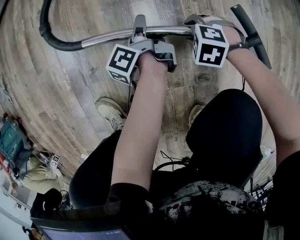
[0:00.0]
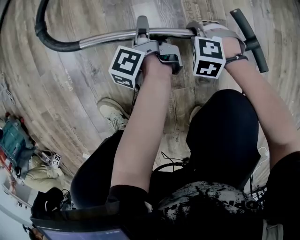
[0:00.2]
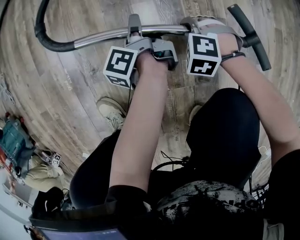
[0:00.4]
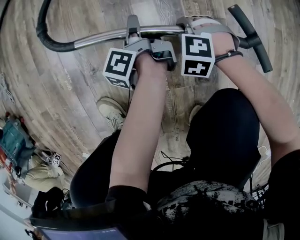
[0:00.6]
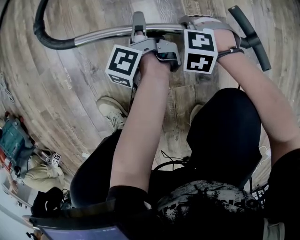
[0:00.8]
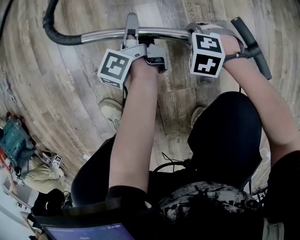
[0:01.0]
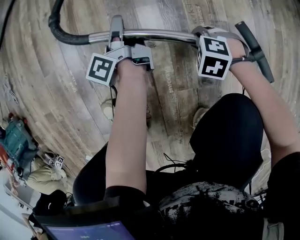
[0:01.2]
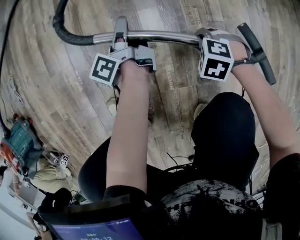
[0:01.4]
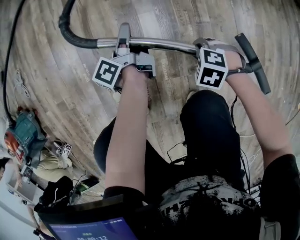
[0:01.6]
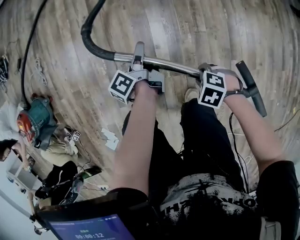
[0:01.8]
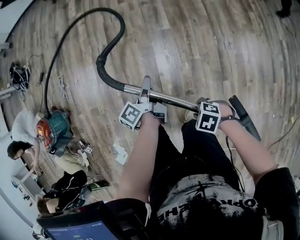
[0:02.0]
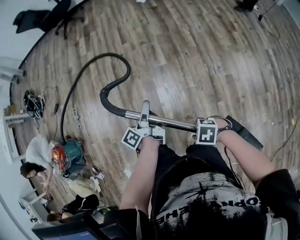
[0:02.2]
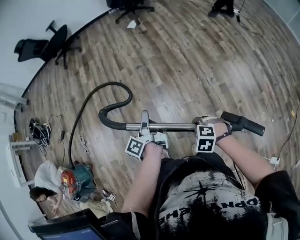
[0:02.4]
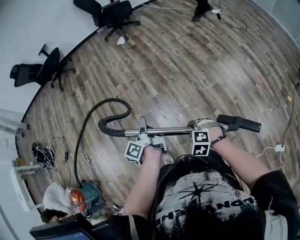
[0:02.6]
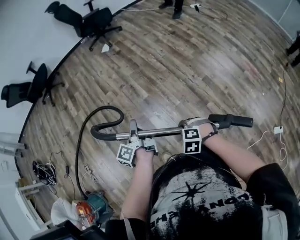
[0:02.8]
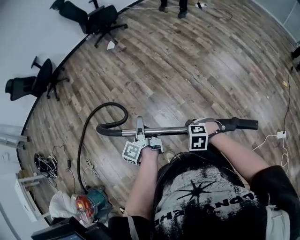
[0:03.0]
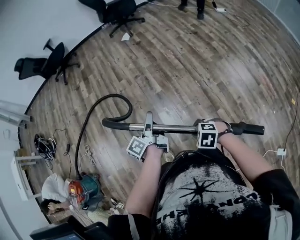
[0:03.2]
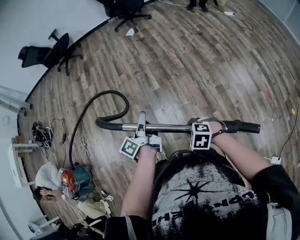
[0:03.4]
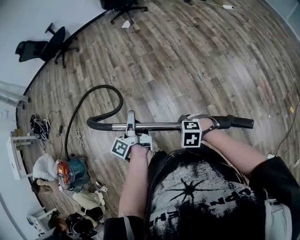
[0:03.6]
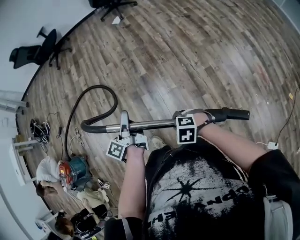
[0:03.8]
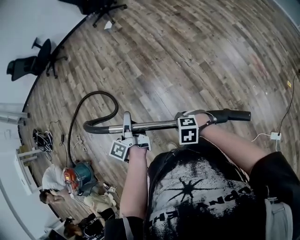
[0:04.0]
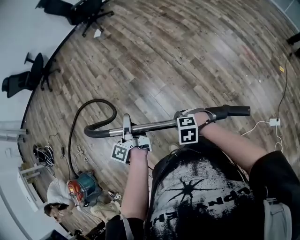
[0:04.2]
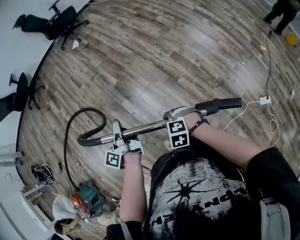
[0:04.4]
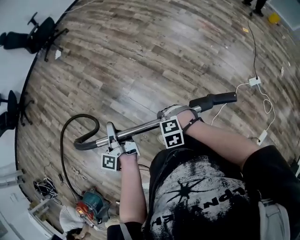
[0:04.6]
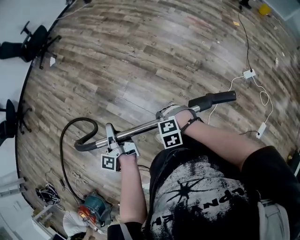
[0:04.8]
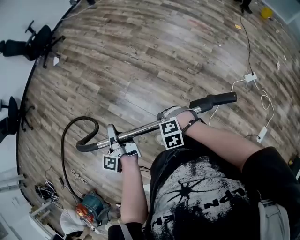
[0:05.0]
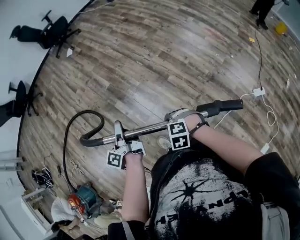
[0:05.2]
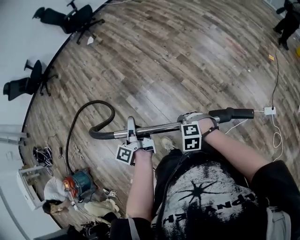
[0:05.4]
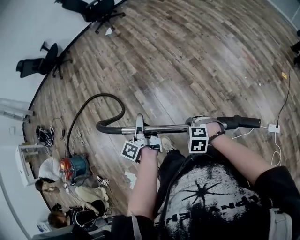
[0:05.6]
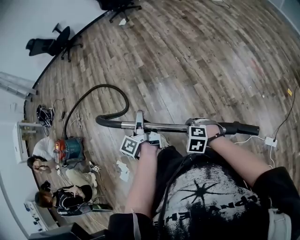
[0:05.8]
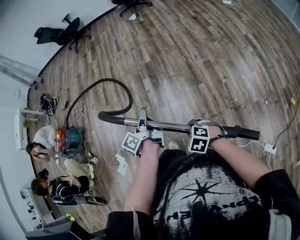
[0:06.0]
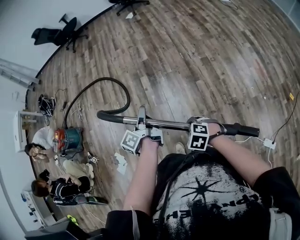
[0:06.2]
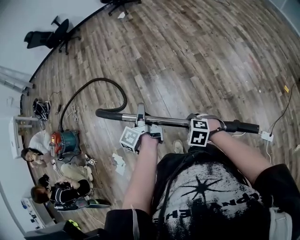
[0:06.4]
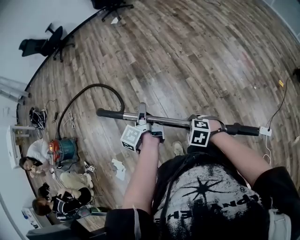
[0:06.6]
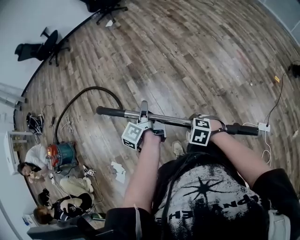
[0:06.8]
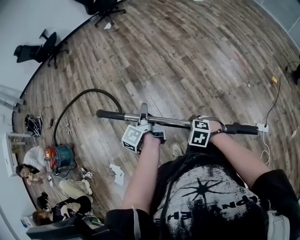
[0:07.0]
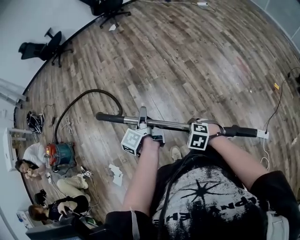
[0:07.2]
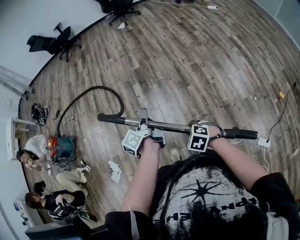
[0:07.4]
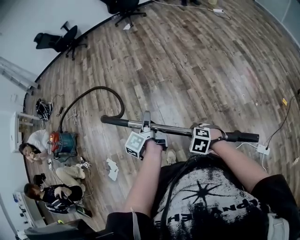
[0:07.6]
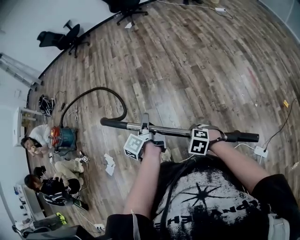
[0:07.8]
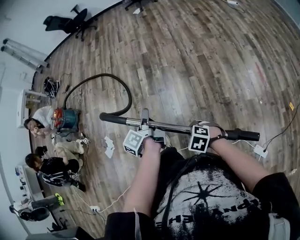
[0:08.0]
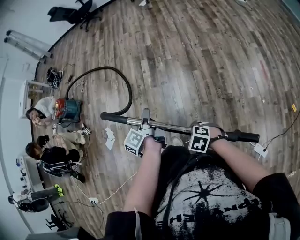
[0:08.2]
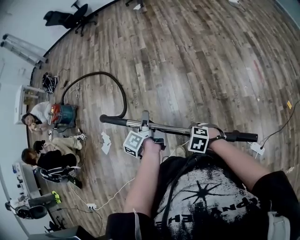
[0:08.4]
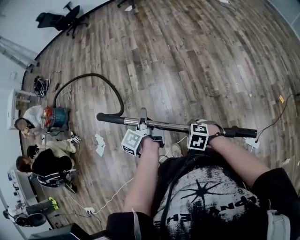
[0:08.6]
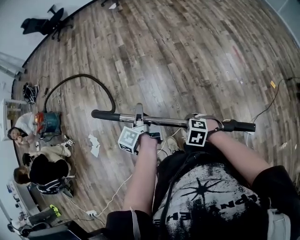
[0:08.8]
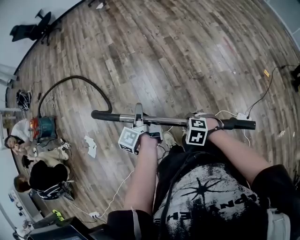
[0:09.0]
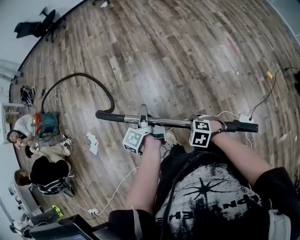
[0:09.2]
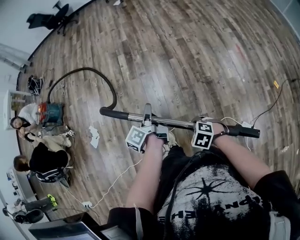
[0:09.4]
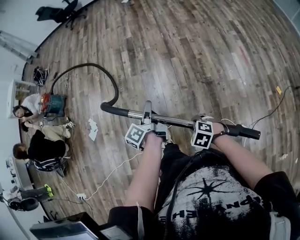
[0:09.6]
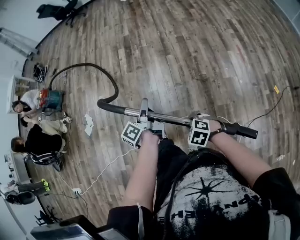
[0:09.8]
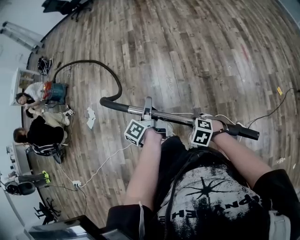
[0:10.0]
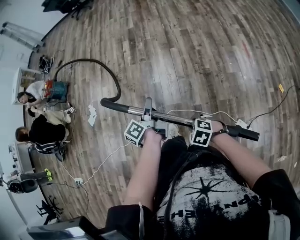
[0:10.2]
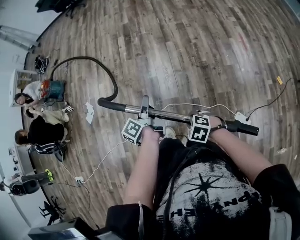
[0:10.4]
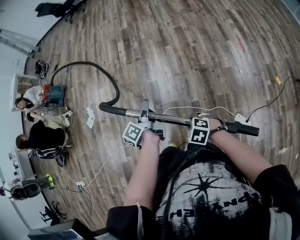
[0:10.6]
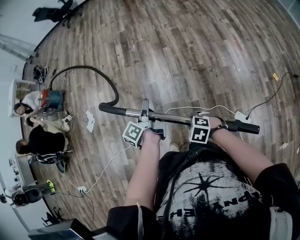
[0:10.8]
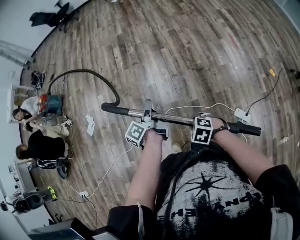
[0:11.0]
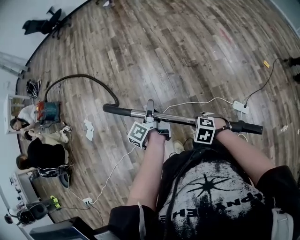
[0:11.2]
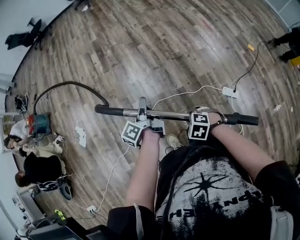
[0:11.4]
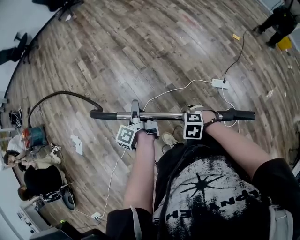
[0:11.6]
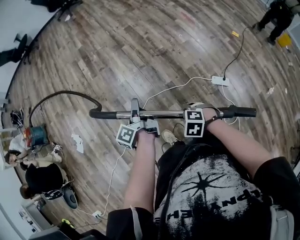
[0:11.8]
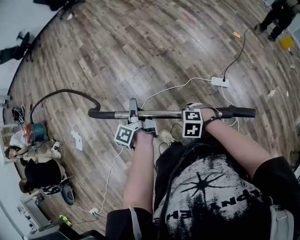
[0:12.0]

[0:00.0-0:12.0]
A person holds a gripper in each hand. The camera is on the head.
0.0 to 1.6 s: The two grippers go some 20 cm upward. The right gripper closes up.
1.6 to 3.0 s: Both grippers travel together upward, about 50 cm. The left gripper rotates some 20 degrees; the right gripper turns by roughly 30 degrees.
3.0 to 4.4 s: Both grippers move backward, about 20 cm.
4.4 to 6.0 s: The left gripper ends up some 30 cm from where it was. The right gripper moves roughly 30 cm.
6.0 to 7.6 s: The grippers both shift backward and to the right by roughly 10 cm.
7.6 to 9.0 s: The left gripper moves approximately 20 cm. The right gripper moves roughly 20 cm.
9.0 to 10.4 s: The right gripper ends up roughly 25 cm from where it was; the left gripper changes place by some 25 cm.
10.4 to 12.0 s: The left gripper changes place by approximately 15 cm; the right gripper moves about 15 cm.

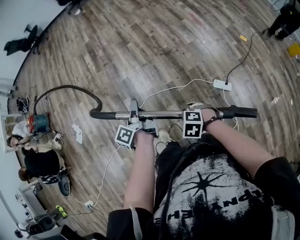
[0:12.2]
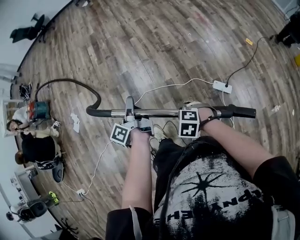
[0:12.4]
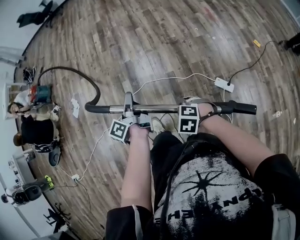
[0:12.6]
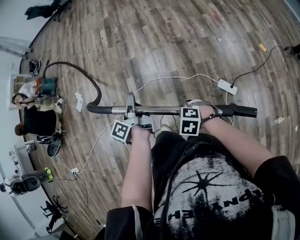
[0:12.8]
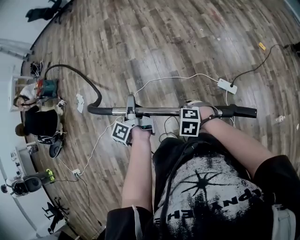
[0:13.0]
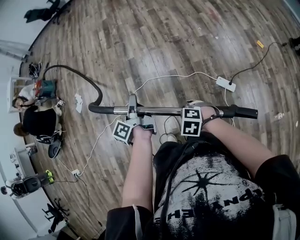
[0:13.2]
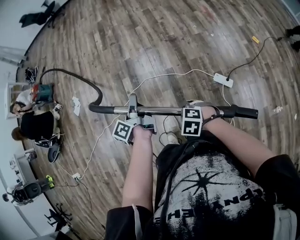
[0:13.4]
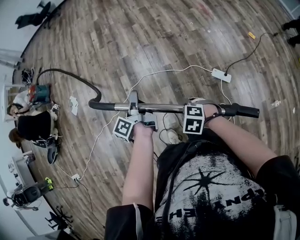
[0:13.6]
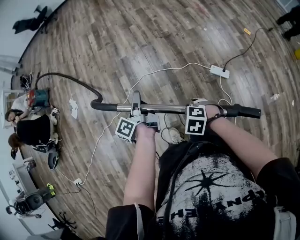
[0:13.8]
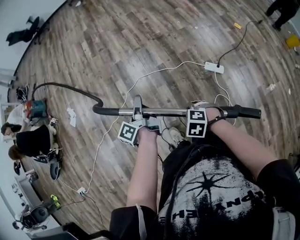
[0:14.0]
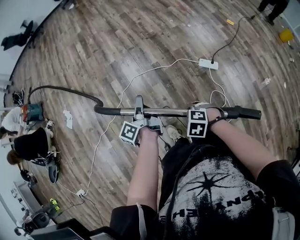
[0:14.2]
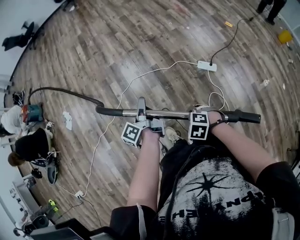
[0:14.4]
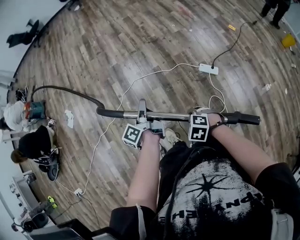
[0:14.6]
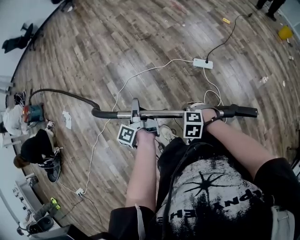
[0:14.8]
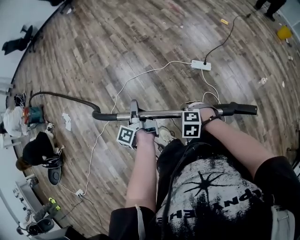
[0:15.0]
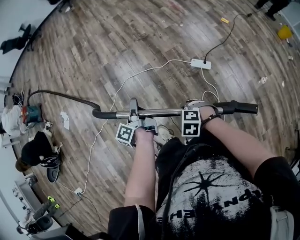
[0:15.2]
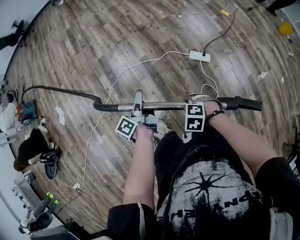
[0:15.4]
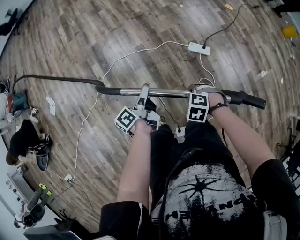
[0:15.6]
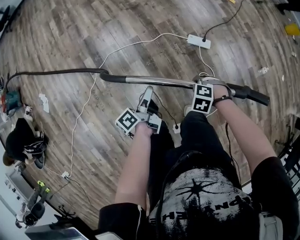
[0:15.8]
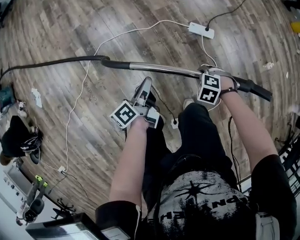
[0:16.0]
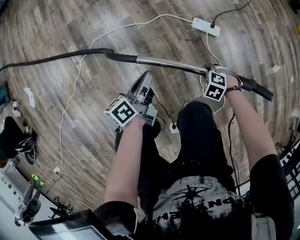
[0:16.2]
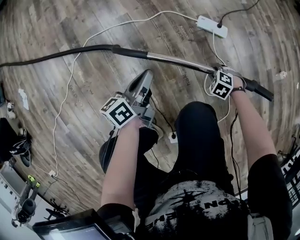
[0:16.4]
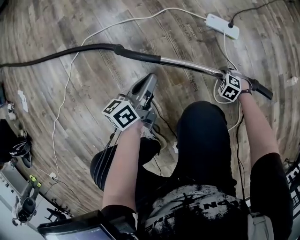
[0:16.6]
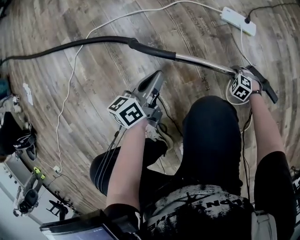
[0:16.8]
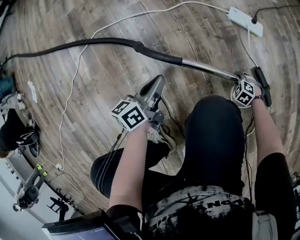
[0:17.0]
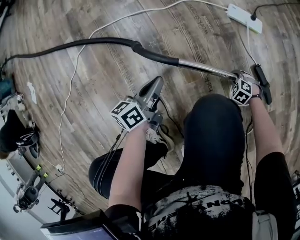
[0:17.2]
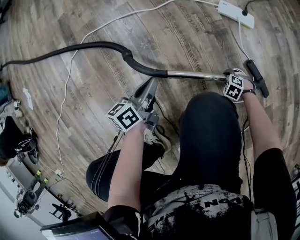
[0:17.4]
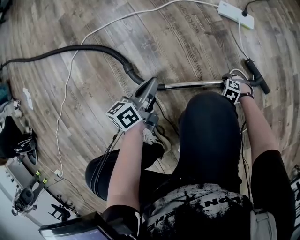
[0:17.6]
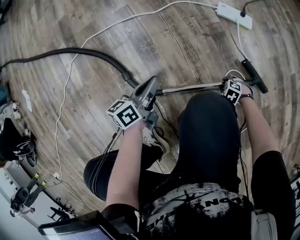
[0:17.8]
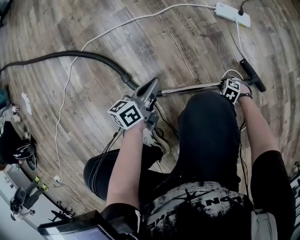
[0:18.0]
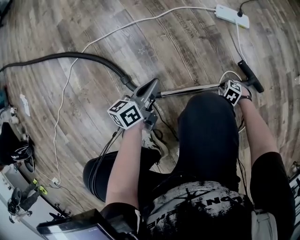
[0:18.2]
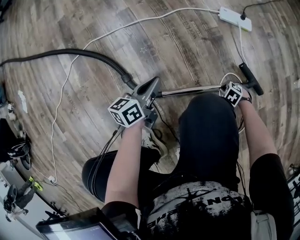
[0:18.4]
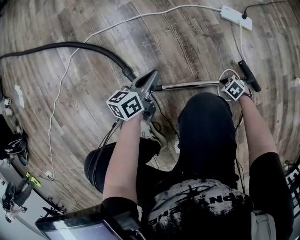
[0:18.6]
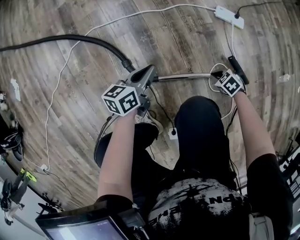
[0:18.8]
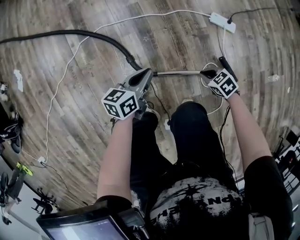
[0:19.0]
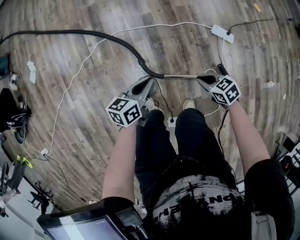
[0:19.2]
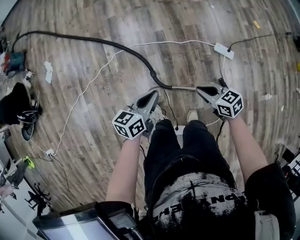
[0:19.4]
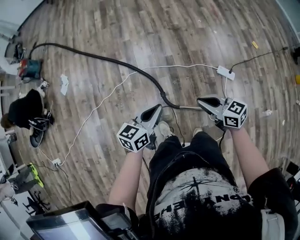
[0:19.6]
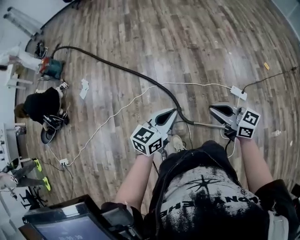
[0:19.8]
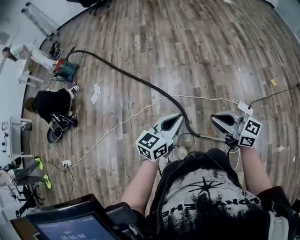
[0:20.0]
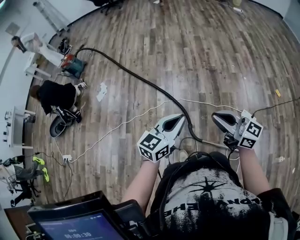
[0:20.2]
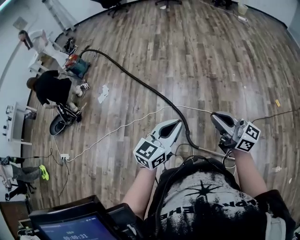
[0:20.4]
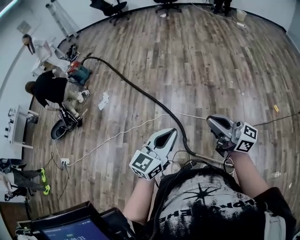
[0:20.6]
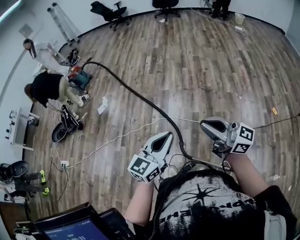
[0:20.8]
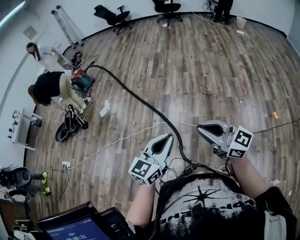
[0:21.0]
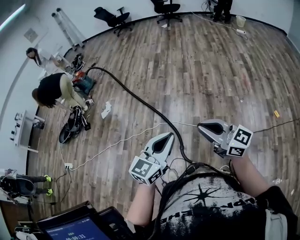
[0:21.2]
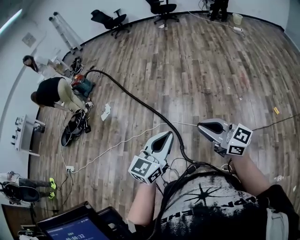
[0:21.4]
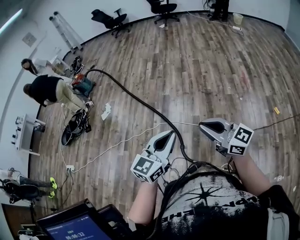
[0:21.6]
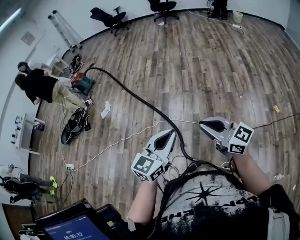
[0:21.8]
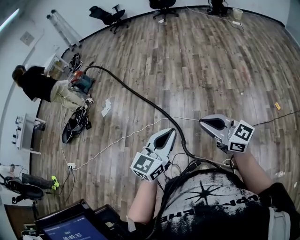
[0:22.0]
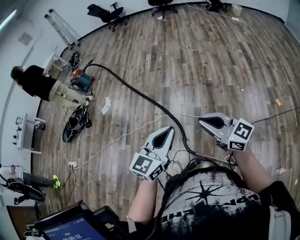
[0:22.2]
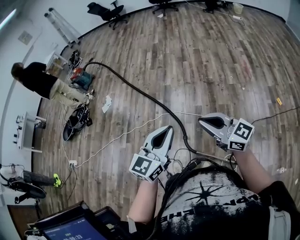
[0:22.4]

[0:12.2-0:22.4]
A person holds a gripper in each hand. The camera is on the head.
12.2 to 13.6 s: The right gripper changes place by approximately 15 cm; the left gripper ends up roughly 15 cm from where it was.
13.6 to 15.2 s: The left gripper shifts by approximately 15 cm. The right gripper moves some 15 cm.
15.2 to 16.6 s: Both grippers travel together downward, roughly 50 cm. The left gripper rotates roughly 50 degrees, and opens and closes again.
16.6 to 18.0 s: Both grippers move downward, roughly 10 cm. The right gripper opens.
18.0 to 19.4 s: Both grippers move upward, about 60 cm. The right gripper points its fingers some 40 degrees further upward, and closes its fingers.
19.4 to 21.0 s: The two grippers go roughly 40 cm upward. The right gripper tips its fingers upward by roughly 40 degrees; the left gripper changes its angle by roughly 40 degrees.
21.0 to 22.4 s: The grippers move only a little.

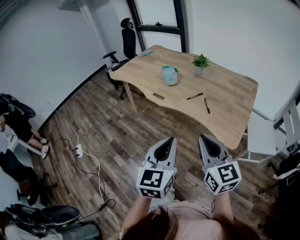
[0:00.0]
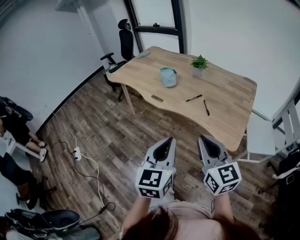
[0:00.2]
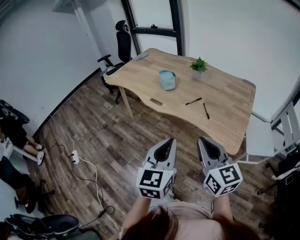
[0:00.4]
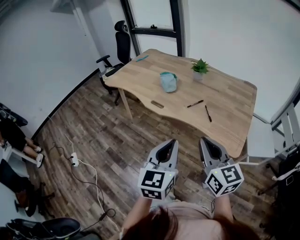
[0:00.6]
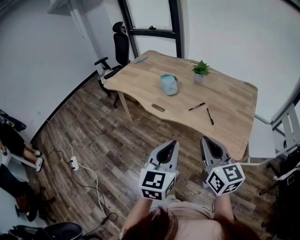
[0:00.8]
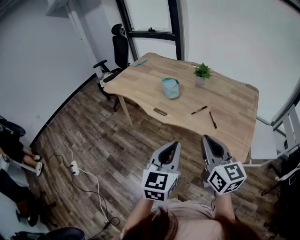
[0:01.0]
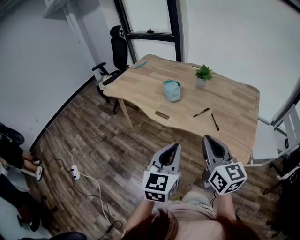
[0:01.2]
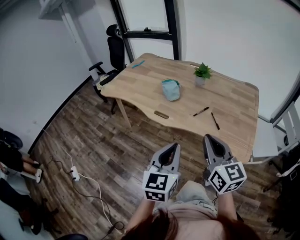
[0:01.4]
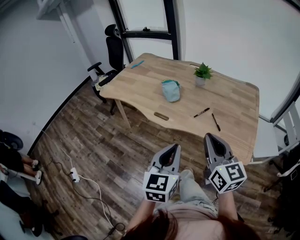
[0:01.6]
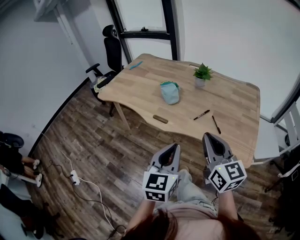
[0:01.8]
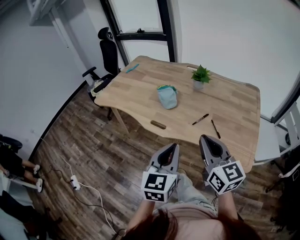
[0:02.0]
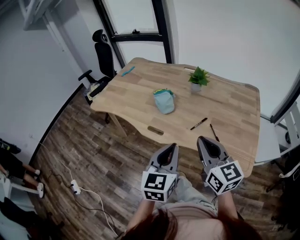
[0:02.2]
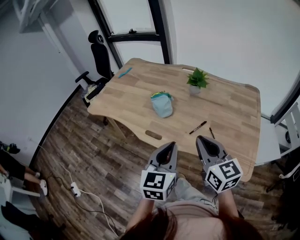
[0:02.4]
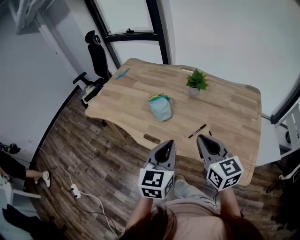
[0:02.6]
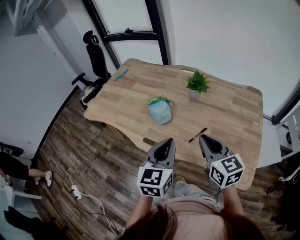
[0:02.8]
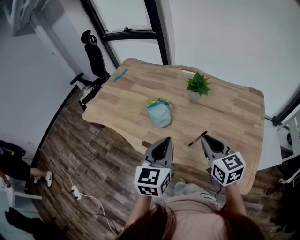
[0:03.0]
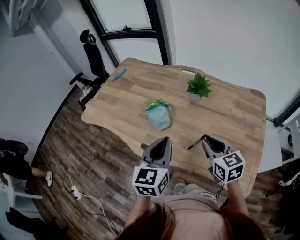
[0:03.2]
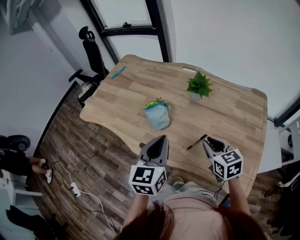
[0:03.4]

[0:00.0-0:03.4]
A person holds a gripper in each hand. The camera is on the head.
0.0 to 1.6 s: The grippers both shift forward and to the left by about 20 cm.
1.6 to 3.4 s: The left gripper is displaced forward by about 30 cm, while the right gripper goes some 30 cm forward and downward, and points its fingers approximately 30 degrees further downward.
